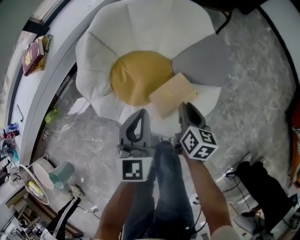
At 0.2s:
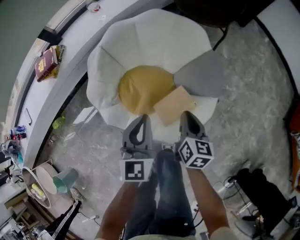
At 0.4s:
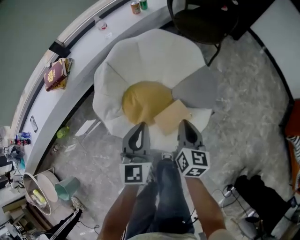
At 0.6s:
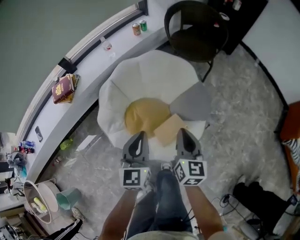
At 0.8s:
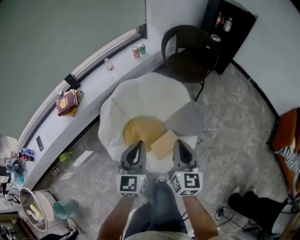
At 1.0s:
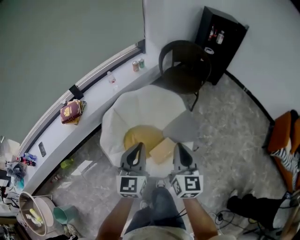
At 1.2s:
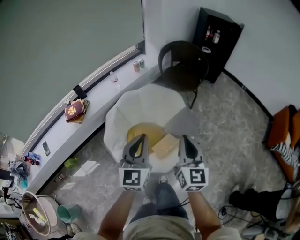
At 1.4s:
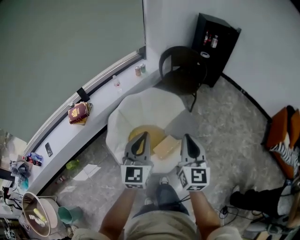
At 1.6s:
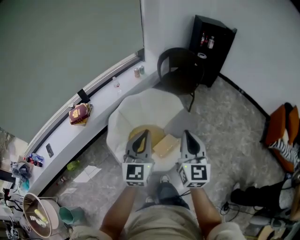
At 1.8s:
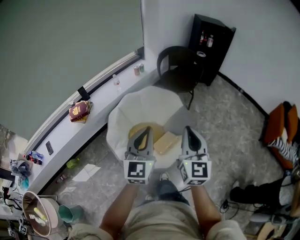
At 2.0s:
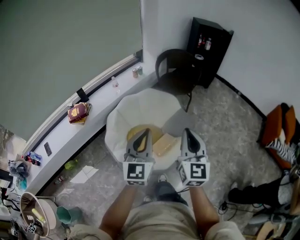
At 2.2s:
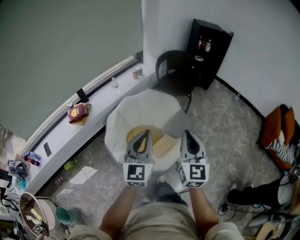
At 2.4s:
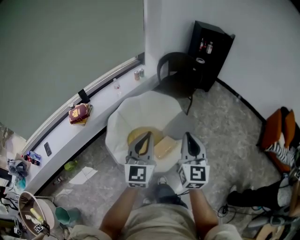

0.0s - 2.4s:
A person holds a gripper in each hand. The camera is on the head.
0.0s - 1.2s: The grippers both shift upward by some 40 cm. The right gripper points its fingers about 30 degrees further upward, and closes its fingers.
1.2s - 2.4s: Both grippers travel together backward and upward, some 10 cm.

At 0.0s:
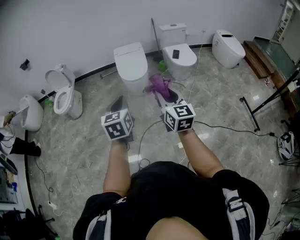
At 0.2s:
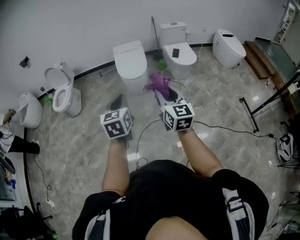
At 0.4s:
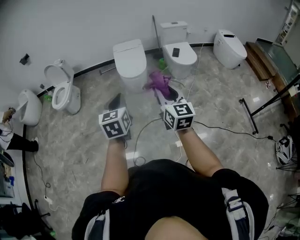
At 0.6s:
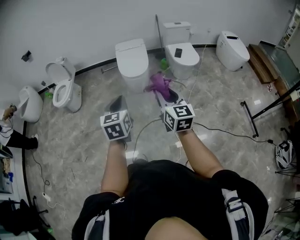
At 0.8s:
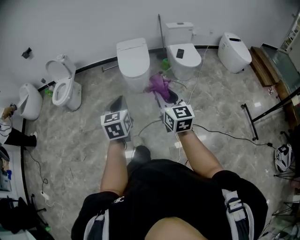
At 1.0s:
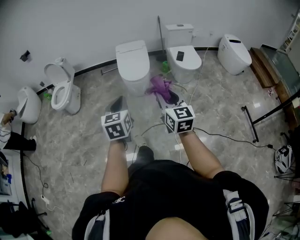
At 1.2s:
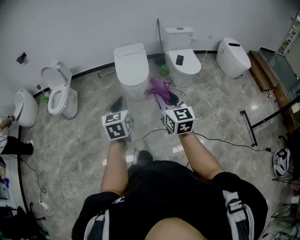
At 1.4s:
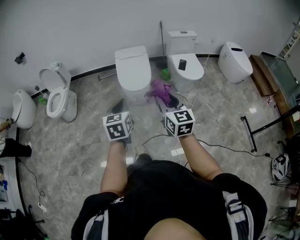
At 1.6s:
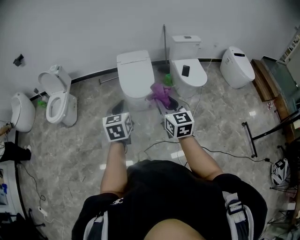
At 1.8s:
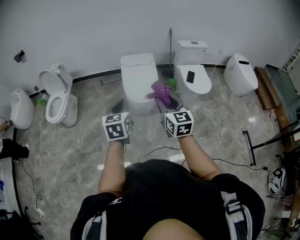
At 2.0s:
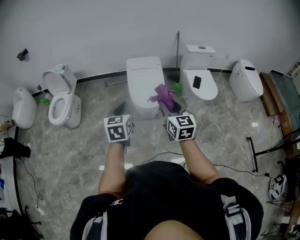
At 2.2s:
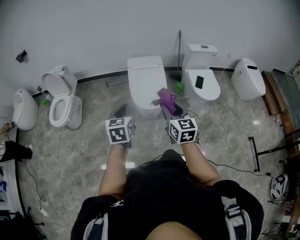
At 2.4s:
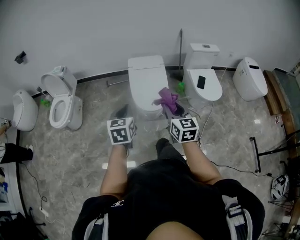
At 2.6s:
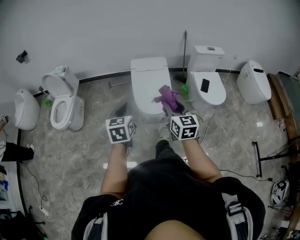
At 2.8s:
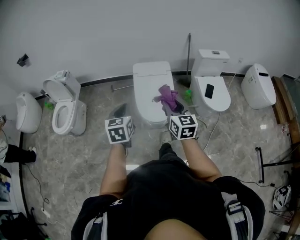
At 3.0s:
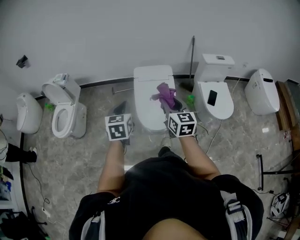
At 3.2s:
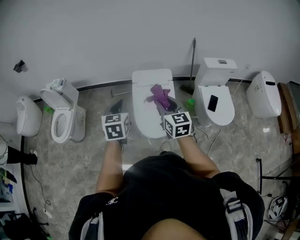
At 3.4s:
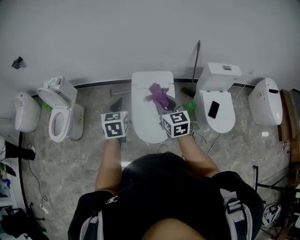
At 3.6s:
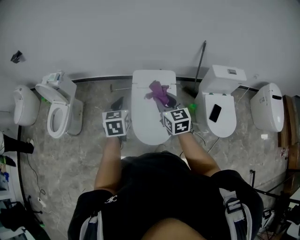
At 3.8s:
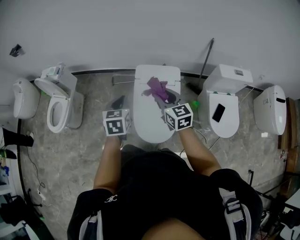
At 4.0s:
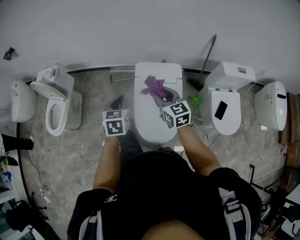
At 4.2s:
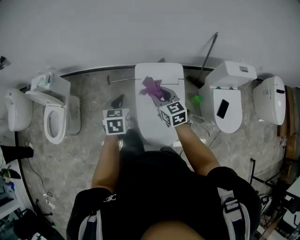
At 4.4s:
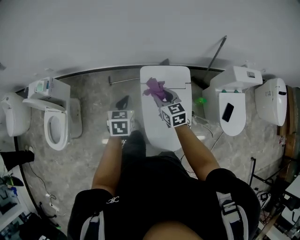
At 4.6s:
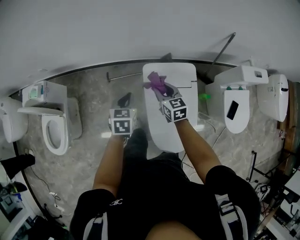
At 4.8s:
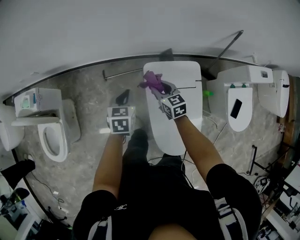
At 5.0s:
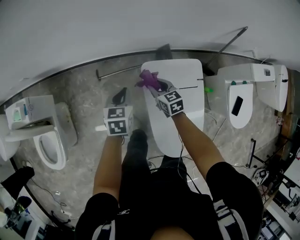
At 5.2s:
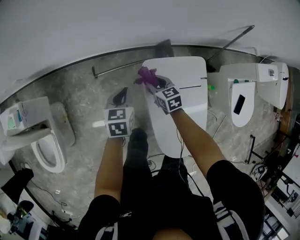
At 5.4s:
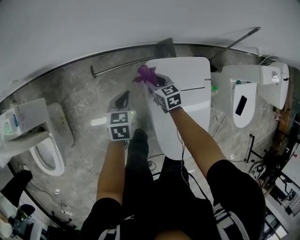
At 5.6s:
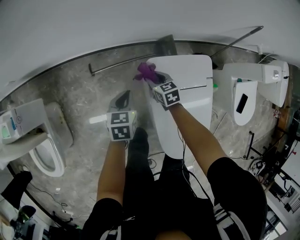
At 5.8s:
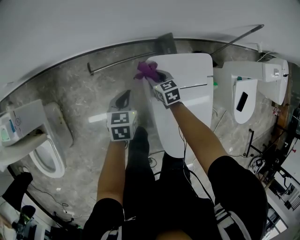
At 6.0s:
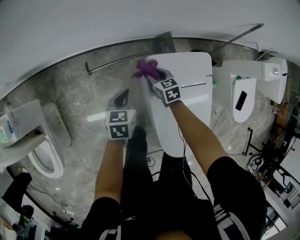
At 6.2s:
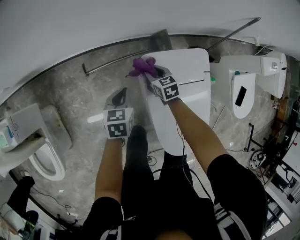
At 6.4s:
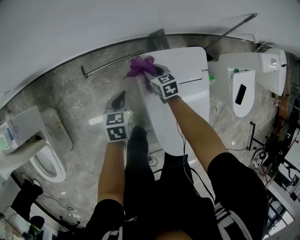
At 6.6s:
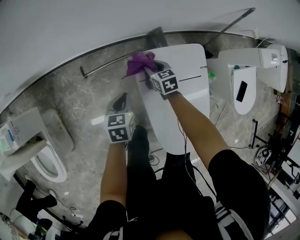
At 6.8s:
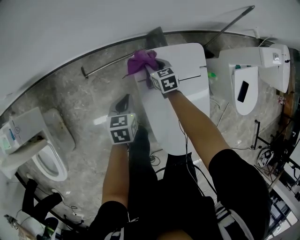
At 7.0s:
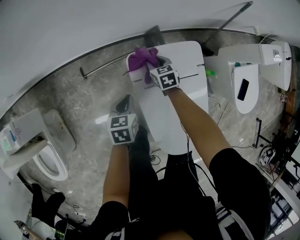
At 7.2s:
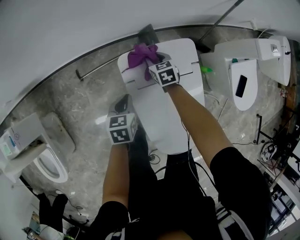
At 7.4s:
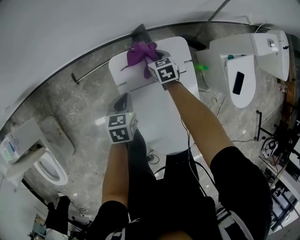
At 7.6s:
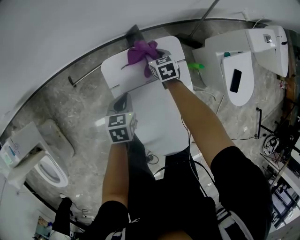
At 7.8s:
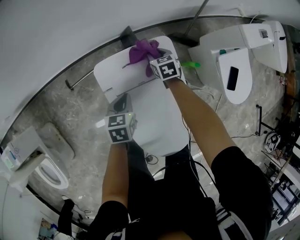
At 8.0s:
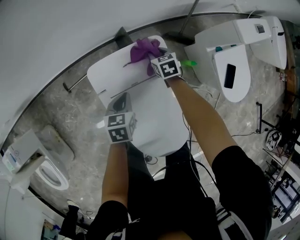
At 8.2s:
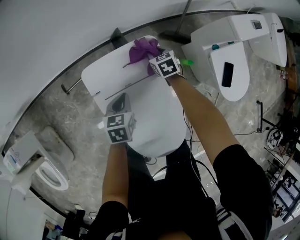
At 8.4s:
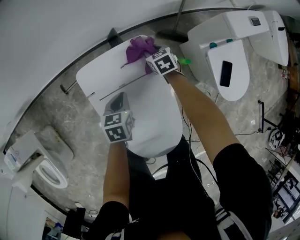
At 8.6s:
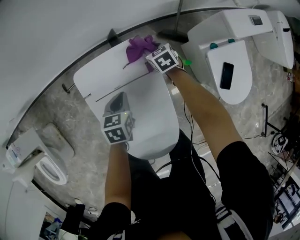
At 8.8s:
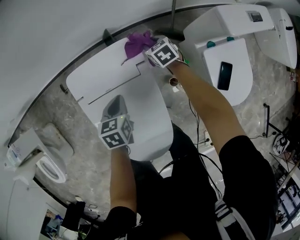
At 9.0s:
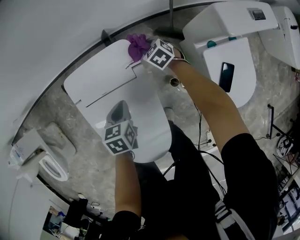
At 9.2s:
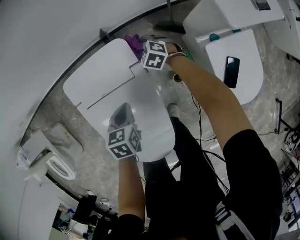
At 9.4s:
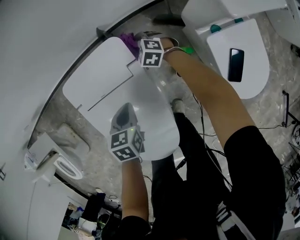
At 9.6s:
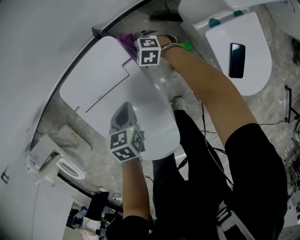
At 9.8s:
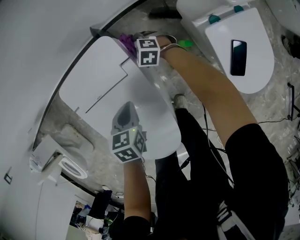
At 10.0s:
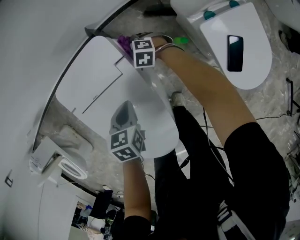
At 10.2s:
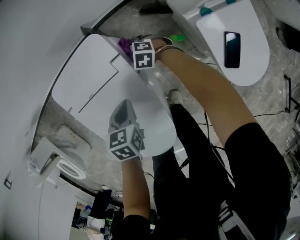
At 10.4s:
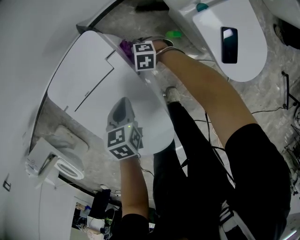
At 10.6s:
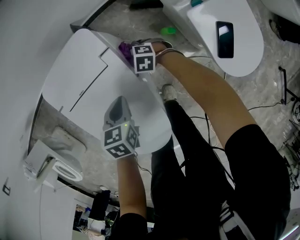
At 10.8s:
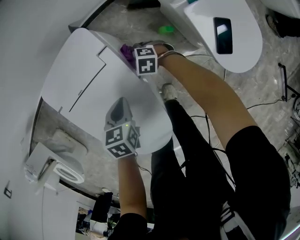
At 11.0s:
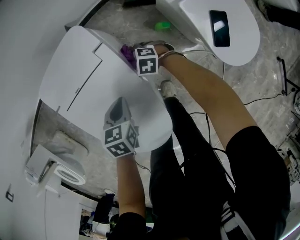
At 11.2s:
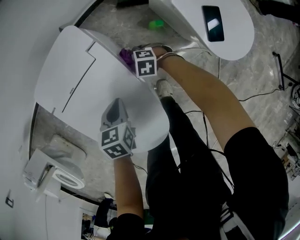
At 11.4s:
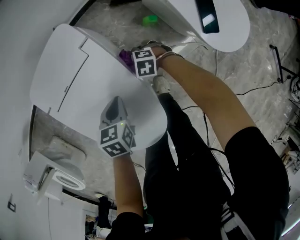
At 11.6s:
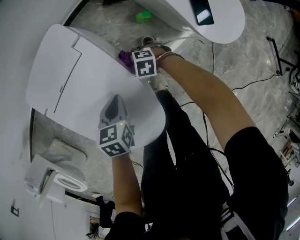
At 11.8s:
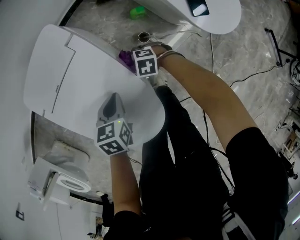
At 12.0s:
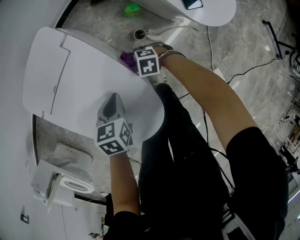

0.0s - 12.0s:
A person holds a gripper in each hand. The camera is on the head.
0.0s - 1.6s: Both grippers travel together forward, roughly 30 cm.
1.6s - 3.0s: The grippers both shift forward by some 40 cm.
3.0s - 4.4s: Both grippers are carried forward, approximately 40 cm. The right gripper turns by some 20 degrees.
4.4s - 6.0s: The grippers both shift downward and forward by roughly 40 cm. The right gripper changes its angle by roughly 20 degrees.
6.0s - 7.6s: The grippers both shift to the right by some 20 cm.
7.6s - 9.0s: Both grippers travel together to the right, approximately 25 cm. The right gripper turns by approximately 30 degrees.
9.0s - 10.4s: The right gripper goes roughly 15 cm backward and downward, and rotates about 20 degrees; the left gripper is displaced backward by approximately 5 cm.
10.4s - 12.0s: The right gripper moves roughly 25 cm; the left gripper ends up approximately 15 cm from where it was.

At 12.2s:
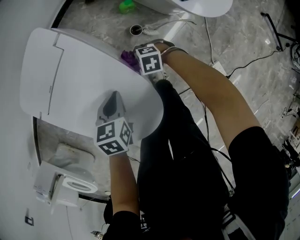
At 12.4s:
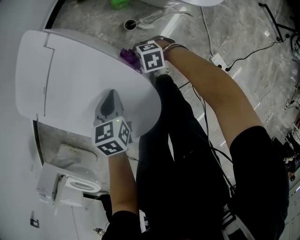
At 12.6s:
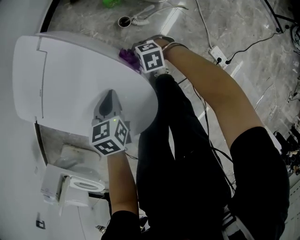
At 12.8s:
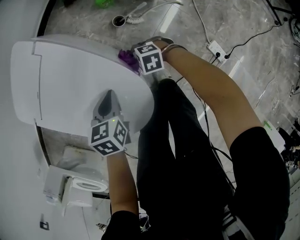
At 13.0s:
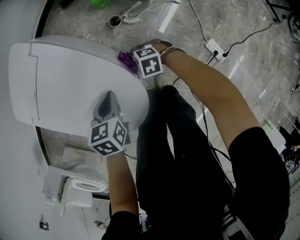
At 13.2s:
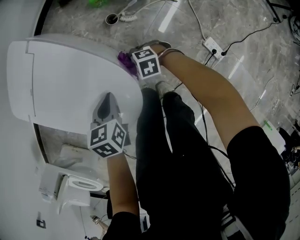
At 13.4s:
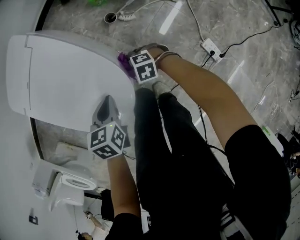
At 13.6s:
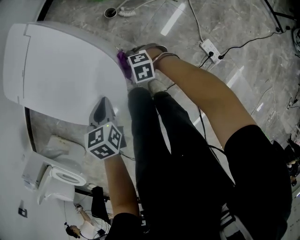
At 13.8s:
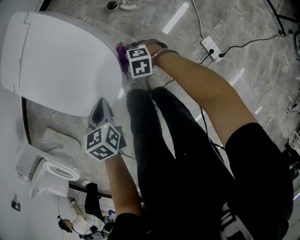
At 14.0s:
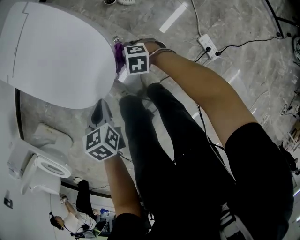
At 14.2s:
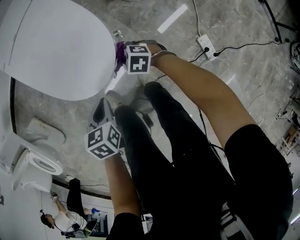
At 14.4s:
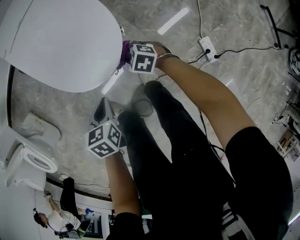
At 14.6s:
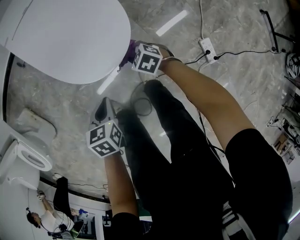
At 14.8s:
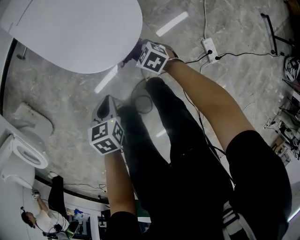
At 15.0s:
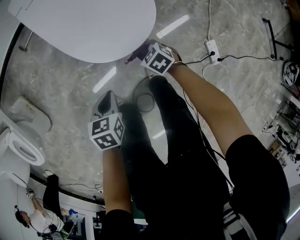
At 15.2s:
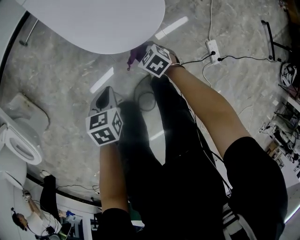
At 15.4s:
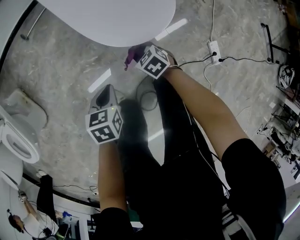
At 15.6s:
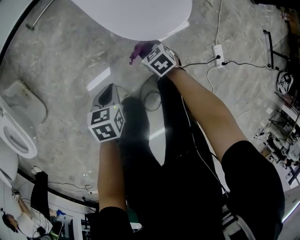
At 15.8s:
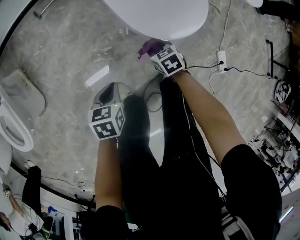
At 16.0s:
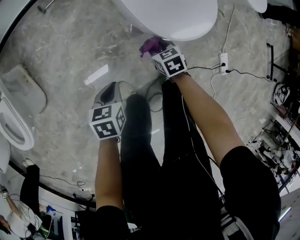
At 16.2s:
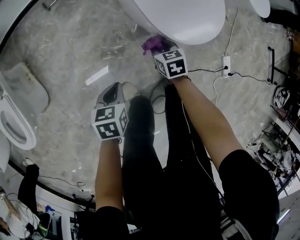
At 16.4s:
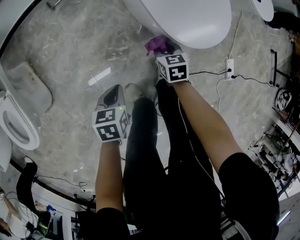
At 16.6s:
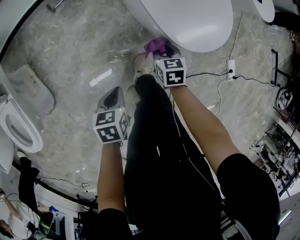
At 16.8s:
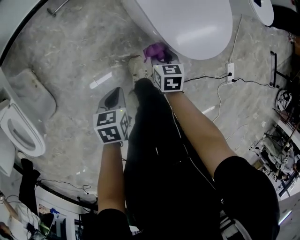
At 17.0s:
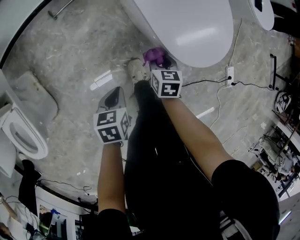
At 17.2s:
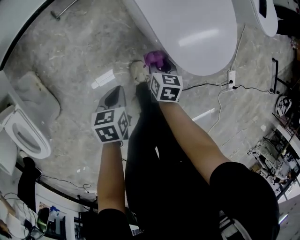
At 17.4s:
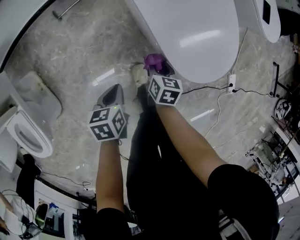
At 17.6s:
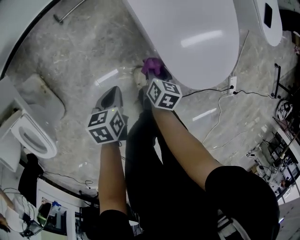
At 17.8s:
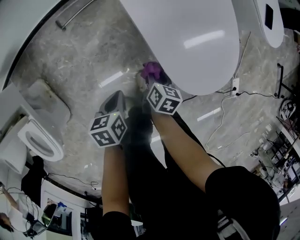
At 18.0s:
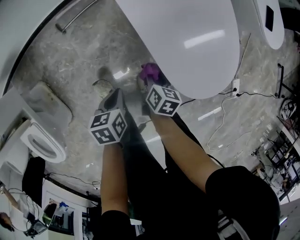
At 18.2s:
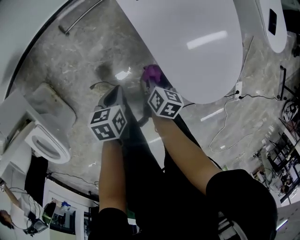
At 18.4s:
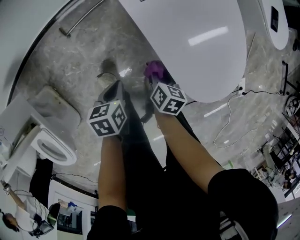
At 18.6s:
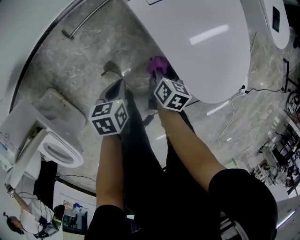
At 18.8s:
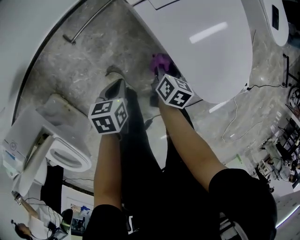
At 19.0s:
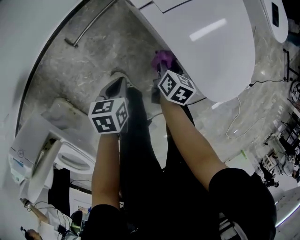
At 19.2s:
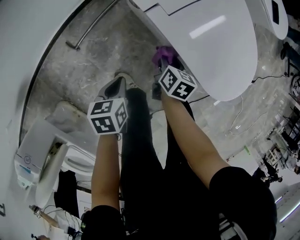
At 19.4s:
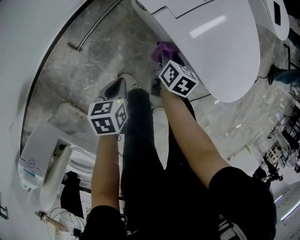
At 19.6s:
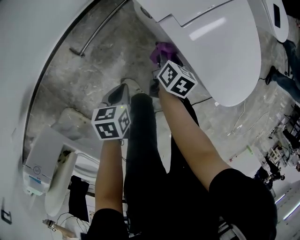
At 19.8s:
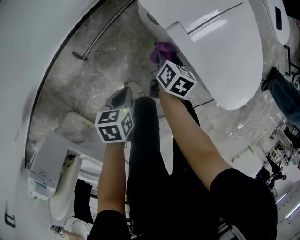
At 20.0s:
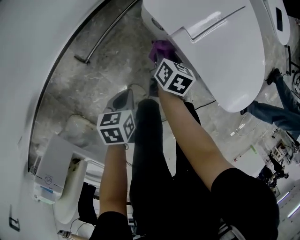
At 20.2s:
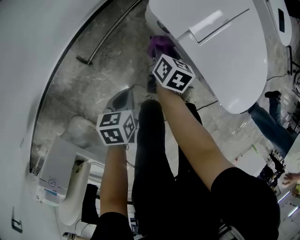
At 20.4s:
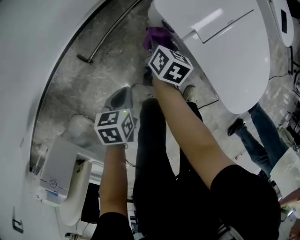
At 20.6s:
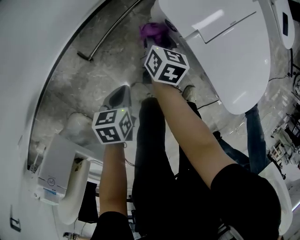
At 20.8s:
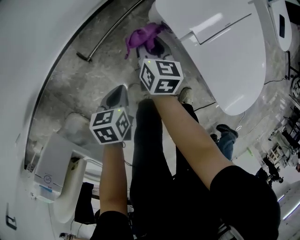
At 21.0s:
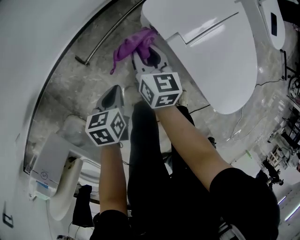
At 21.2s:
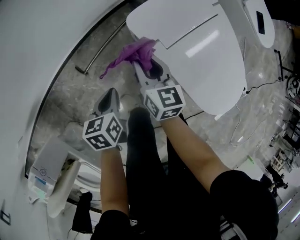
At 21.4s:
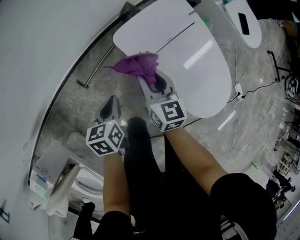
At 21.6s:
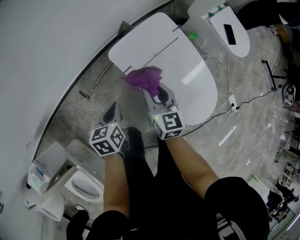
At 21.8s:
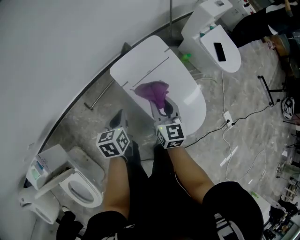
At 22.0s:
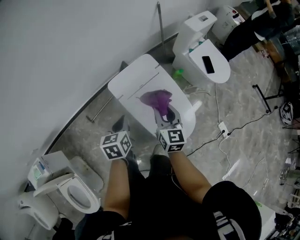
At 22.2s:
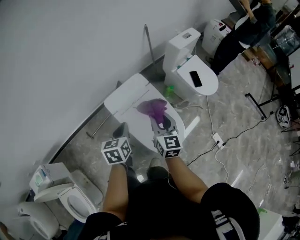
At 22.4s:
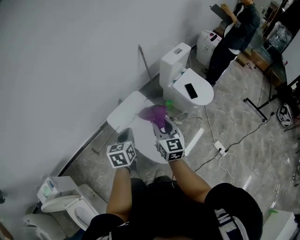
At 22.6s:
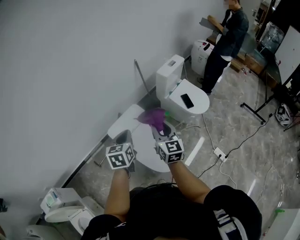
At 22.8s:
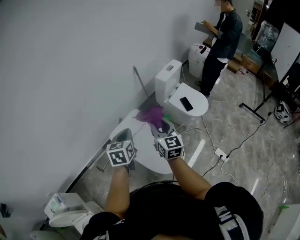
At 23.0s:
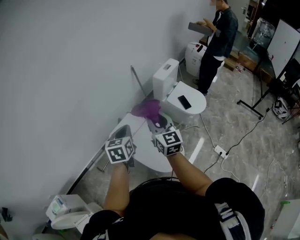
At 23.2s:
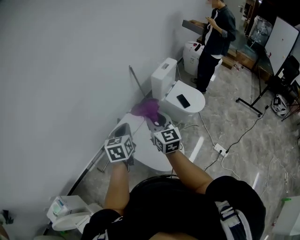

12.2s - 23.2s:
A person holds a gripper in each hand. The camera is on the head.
12.2s - 13.8s: The right gripper shifts by about 20 cm; the left gripper changes place by roughly 25 cm.
13.8s - 15.4s: The grippers both shift to the left by some 25 cm. The right gripper turns by roughly 20 degrees.
15.4s - 17.0s: The right gripper ends up approximately 20 cm from where it was, and swivels about 50 degrees. The left gripper changes place by some 20 cm.
17.0s - 18.4s: The right gripper travels forward and to the left by some 15 cm, and turns by roughly 30 degrees. Meanwhile the left gripper goes some 20 cm forward and to the left.
18.4s - 20.0s: The left gripper is displaced to the left by roughly 20 cm. The right gripper moves to the left and forward, some 25 cm.
20.0s - 21.6s: The right gripper is displaced upward by some 35 cm, and changes its angle by roughly 40 degrees. The left gripper travels upward and to the right by some 25 cm, and rotates about 20 degrees.
21.6s - 23.2s: Both grippers travel together upward and to the right, roughly 50 cm. The left gripper turns by roughly 30 degrees. Meanwhile the right gripper swivels some 20 degrees.
